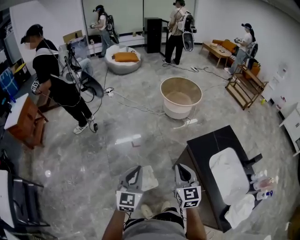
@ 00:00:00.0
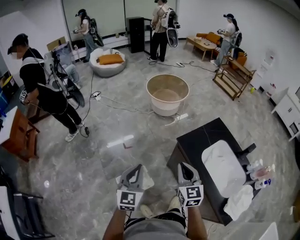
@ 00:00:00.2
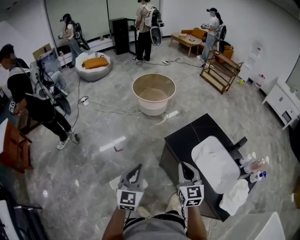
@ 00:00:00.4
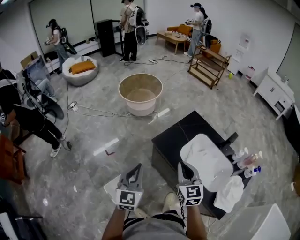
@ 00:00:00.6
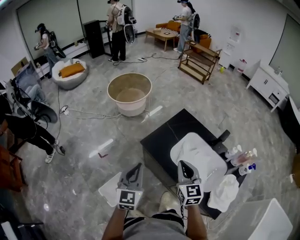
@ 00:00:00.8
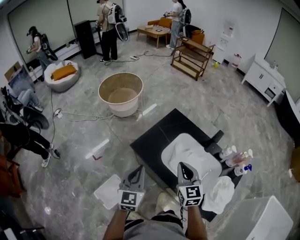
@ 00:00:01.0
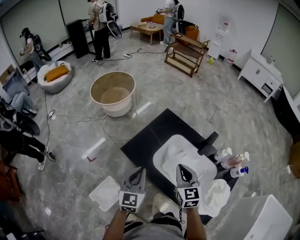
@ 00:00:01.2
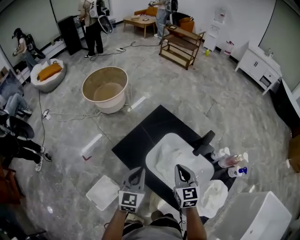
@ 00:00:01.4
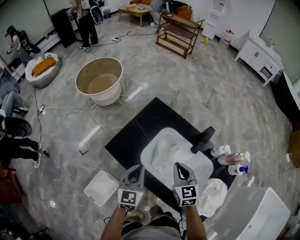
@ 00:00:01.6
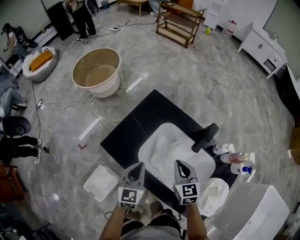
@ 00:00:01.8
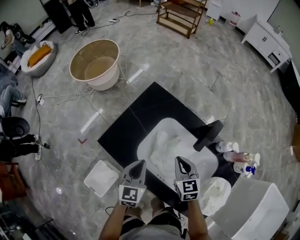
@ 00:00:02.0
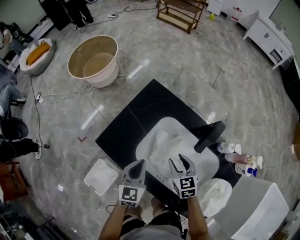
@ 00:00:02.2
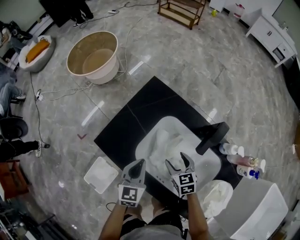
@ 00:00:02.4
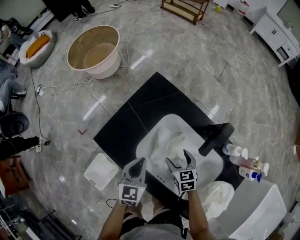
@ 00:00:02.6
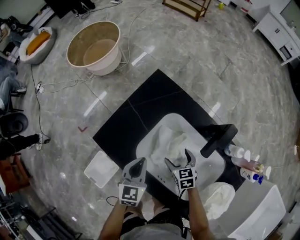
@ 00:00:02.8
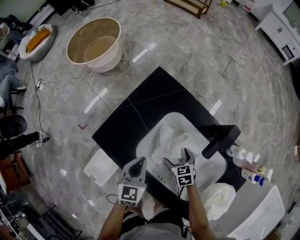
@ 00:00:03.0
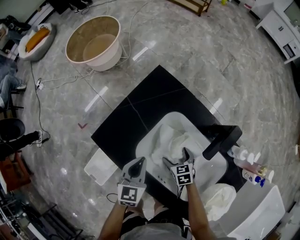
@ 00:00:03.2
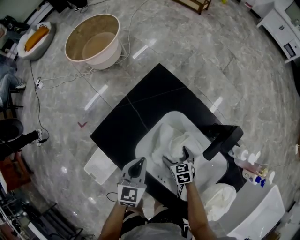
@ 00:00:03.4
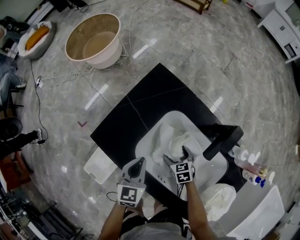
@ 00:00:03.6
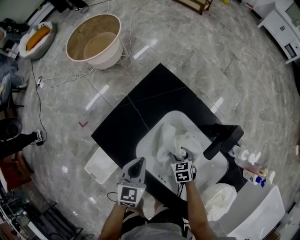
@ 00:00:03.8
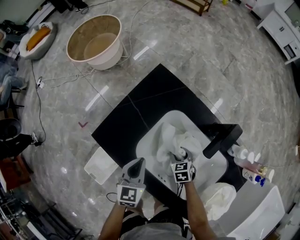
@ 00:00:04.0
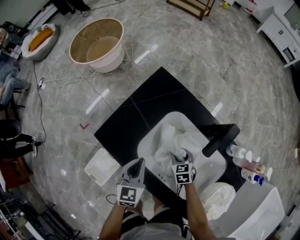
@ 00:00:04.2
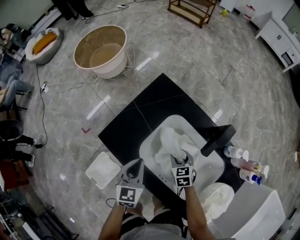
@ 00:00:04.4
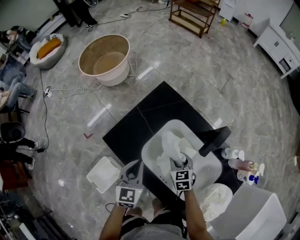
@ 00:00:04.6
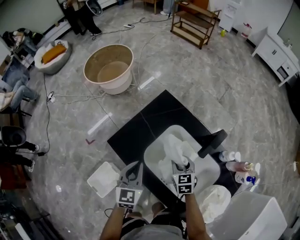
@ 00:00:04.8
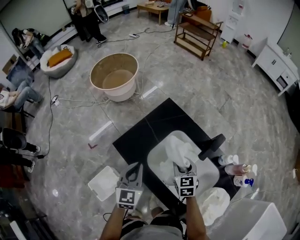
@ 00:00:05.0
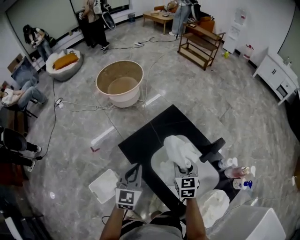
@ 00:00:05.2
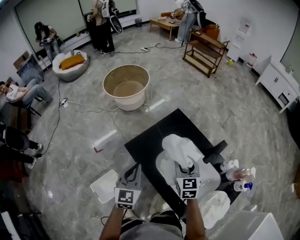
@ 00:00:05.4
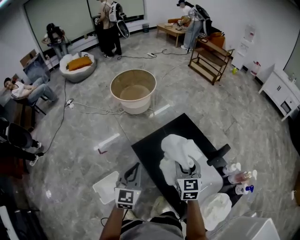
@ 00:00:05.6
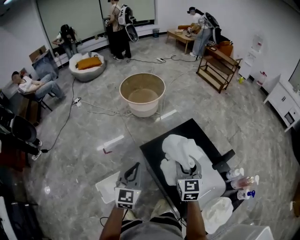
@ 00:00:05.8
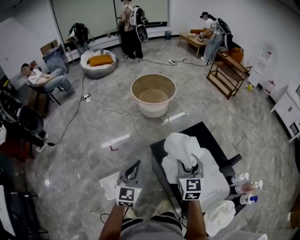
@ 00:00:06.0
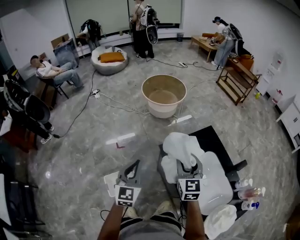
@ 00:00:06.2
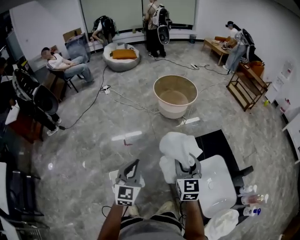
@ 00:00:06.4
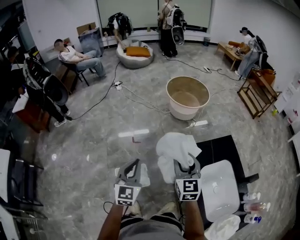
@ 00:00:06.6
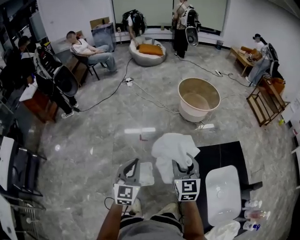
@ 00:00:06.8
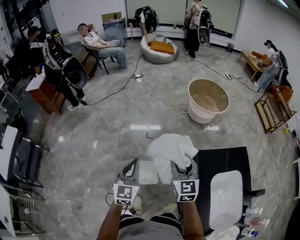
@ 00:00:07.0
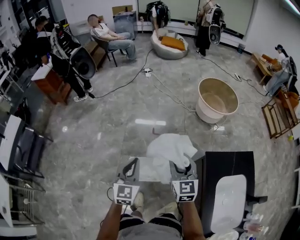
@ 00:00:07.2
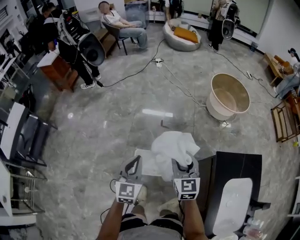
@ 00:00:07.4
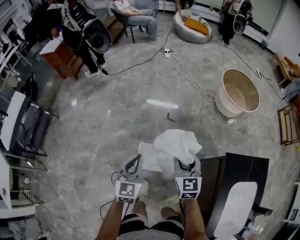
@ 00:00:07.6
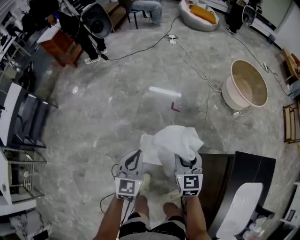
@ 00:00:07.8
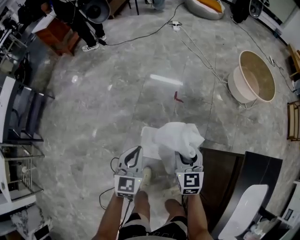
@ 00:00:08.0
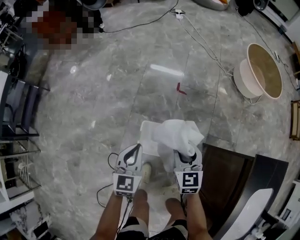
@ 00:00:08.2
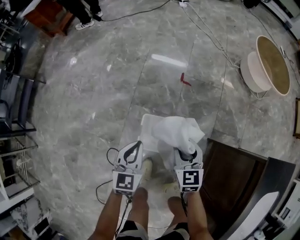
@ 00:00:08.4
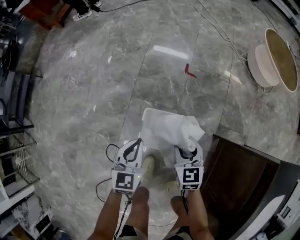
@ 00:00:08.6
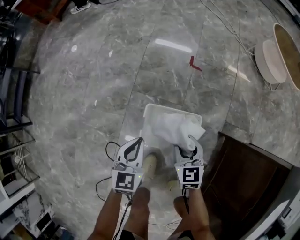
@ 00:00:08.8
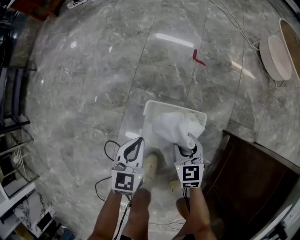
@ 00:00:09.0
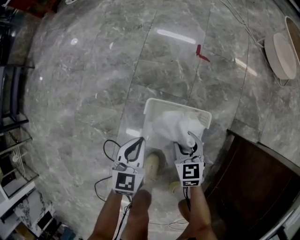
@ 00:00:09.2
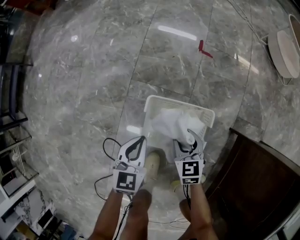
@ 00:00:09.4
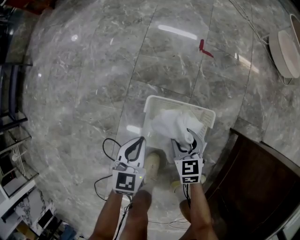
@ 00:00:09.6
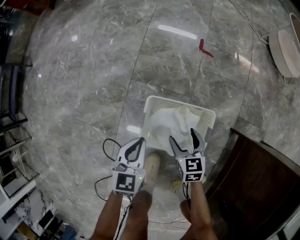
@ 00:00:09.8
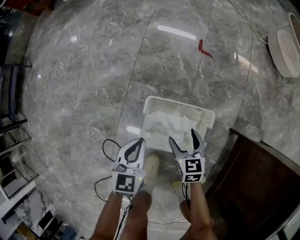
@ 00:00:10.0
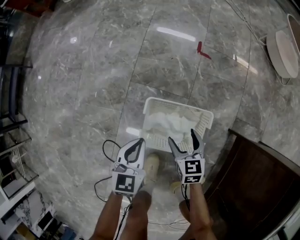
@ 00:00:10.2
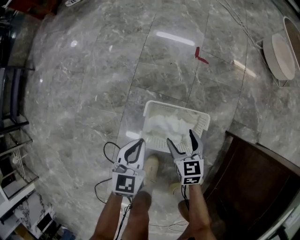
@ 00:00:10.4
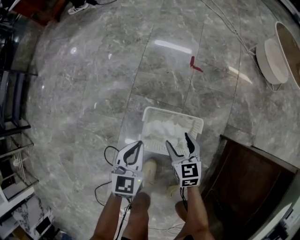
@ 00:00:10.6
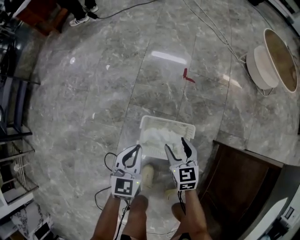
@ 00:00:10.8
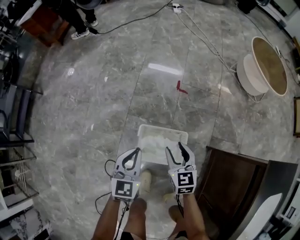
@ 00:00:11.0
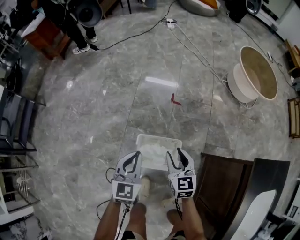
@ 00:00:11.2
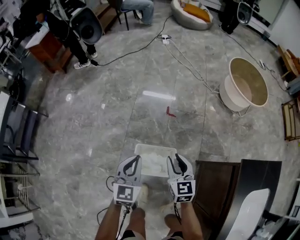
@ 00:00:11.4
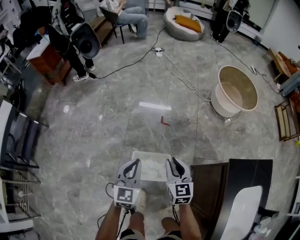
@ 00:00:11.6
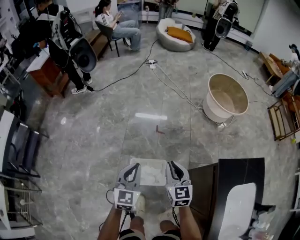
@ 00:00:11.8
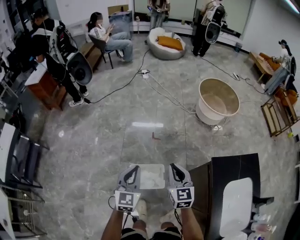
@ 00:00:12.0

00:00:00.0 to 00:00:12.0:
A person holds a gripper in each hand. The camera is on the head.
00:00:00.0 to 00:00:01.6: The two grippers travel together, some 50 cm. The left gripper swivels approximately 30 degrees; the right gripper turns by approximately 30 degrees.
00:00:01.6 to 00:00:03.0: The right gripper goes roughly 30 cm downward, swivels roughly 30 degrees, and opens up, while the left gripper heads downward, covering some 15 cm.
00:00:03.0 to 00:00:04.4: The left gripper shifts by roughly 5 cm; the right gripper travels upward by some 5 cm, and closes up.
00:00:04.4 to 00:00:06.0: The right gripper heads upward and to the left, covering approximately 40 cm, and tips its fingers upward by about 40 degrees. Meanwhile the left gripper is displaced to the left, upward and backward by approximately 35 cm, and rotates roughly 30 degrees.
00:00:06.0 to 00:00:07.6: The two grippers travel together, about 40 cm. The left gripper changes its angle by about 40 degrees; the right gripper rotates approximately 40 degrees.
00:00:07.6 to 00:00:09.0: Both grippers move downward, some 50 cm. The right gripper rotates about 20 degrees. Meanwhile the left gripper rotates about 20 degrees.
00:00:09.0 to 00:00:10.4: The right gripper heads downward, covering some 5 cm, and opens its fingers.
00:00:10.4 to 00:00:12.0: The two grippers go some 60 cm upward. The right gripper changes its angle by some 30 degrees, and closes; the left gripper rotates roughly 20 degrees.

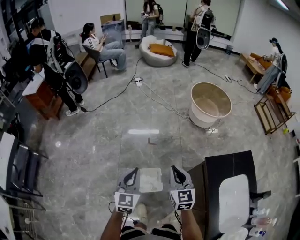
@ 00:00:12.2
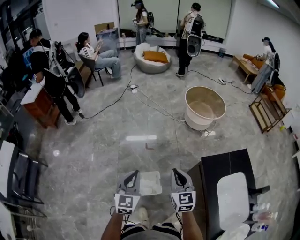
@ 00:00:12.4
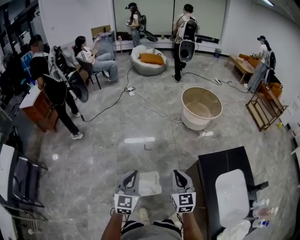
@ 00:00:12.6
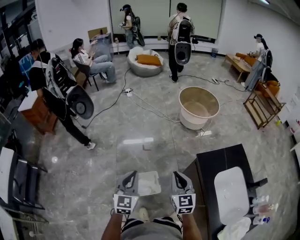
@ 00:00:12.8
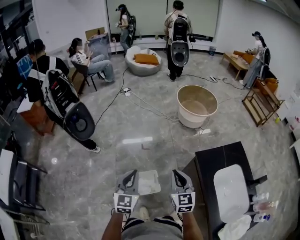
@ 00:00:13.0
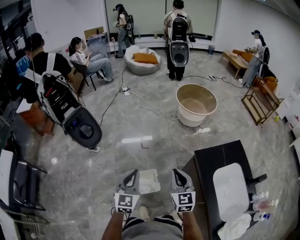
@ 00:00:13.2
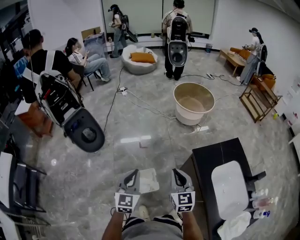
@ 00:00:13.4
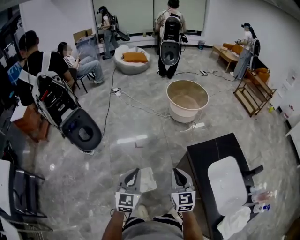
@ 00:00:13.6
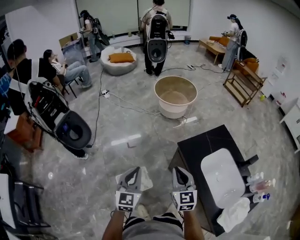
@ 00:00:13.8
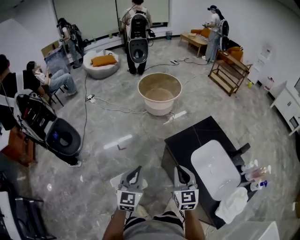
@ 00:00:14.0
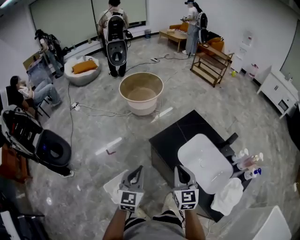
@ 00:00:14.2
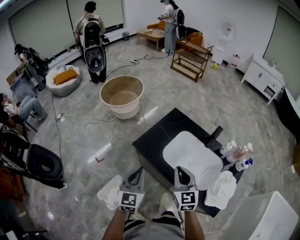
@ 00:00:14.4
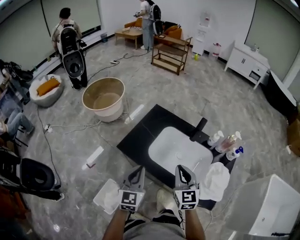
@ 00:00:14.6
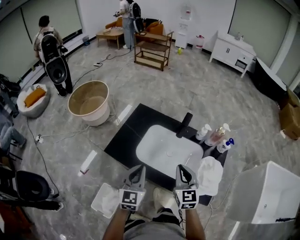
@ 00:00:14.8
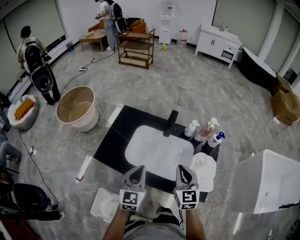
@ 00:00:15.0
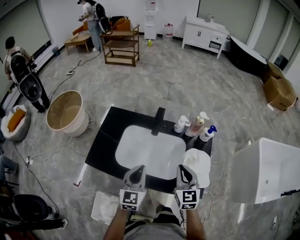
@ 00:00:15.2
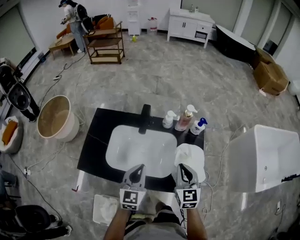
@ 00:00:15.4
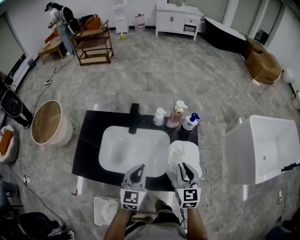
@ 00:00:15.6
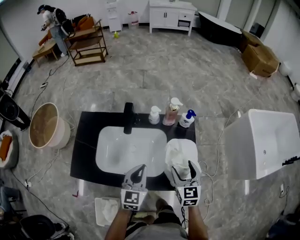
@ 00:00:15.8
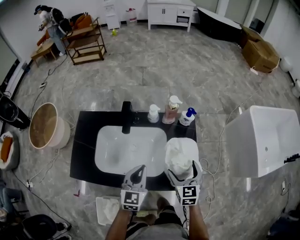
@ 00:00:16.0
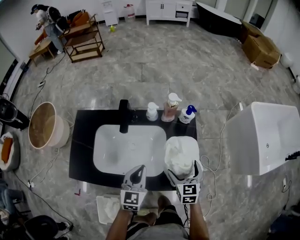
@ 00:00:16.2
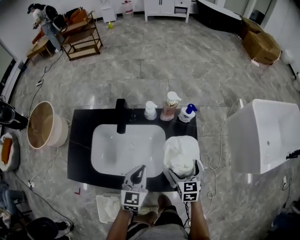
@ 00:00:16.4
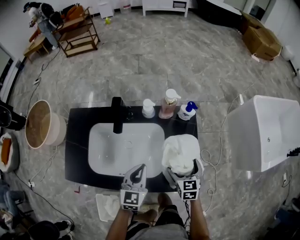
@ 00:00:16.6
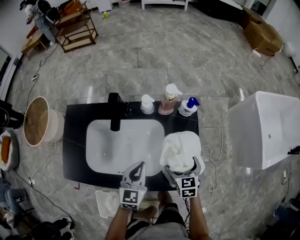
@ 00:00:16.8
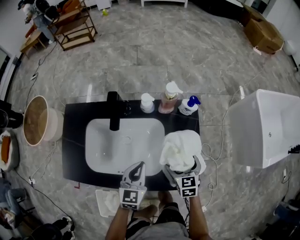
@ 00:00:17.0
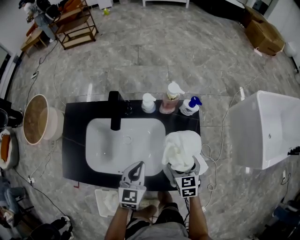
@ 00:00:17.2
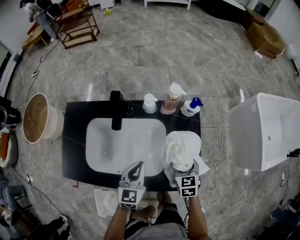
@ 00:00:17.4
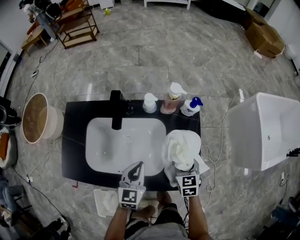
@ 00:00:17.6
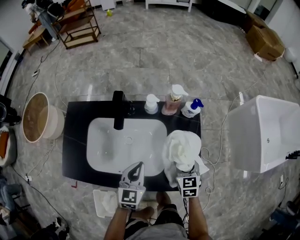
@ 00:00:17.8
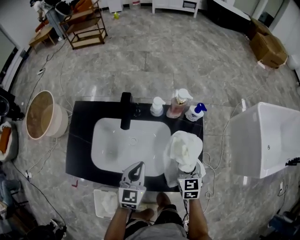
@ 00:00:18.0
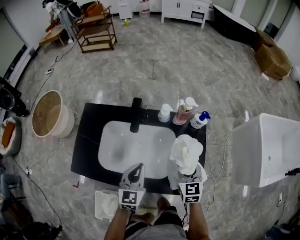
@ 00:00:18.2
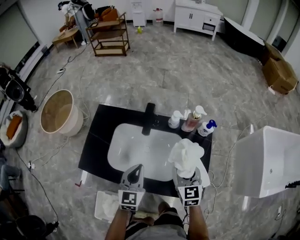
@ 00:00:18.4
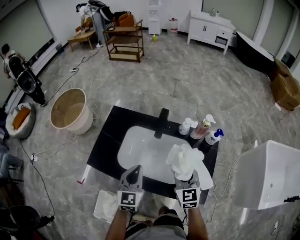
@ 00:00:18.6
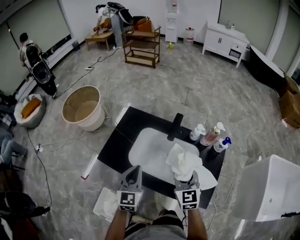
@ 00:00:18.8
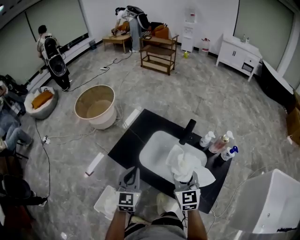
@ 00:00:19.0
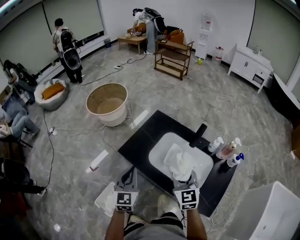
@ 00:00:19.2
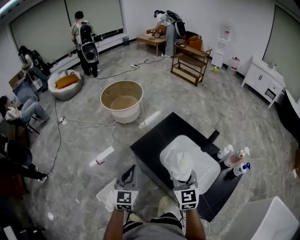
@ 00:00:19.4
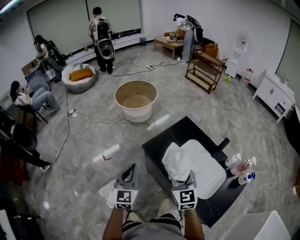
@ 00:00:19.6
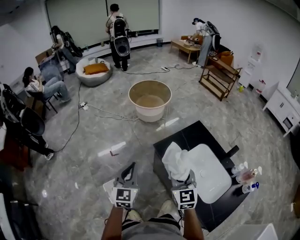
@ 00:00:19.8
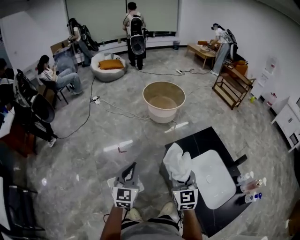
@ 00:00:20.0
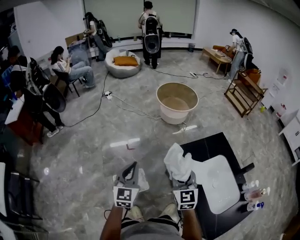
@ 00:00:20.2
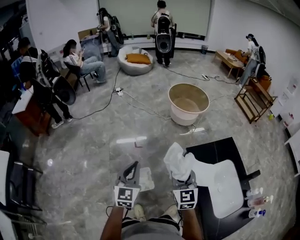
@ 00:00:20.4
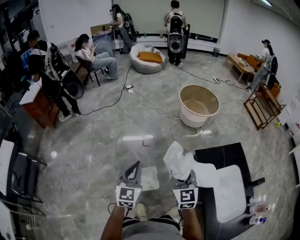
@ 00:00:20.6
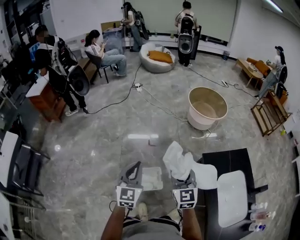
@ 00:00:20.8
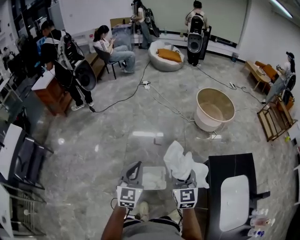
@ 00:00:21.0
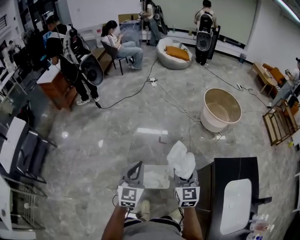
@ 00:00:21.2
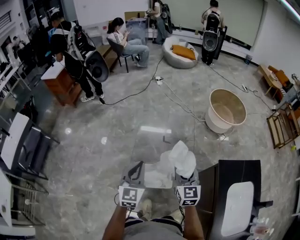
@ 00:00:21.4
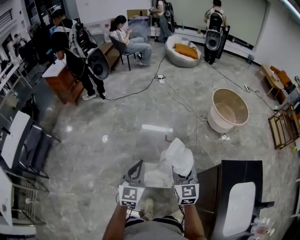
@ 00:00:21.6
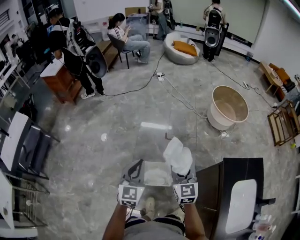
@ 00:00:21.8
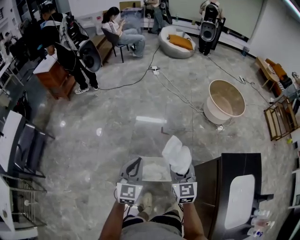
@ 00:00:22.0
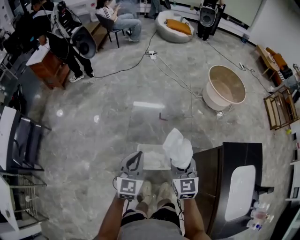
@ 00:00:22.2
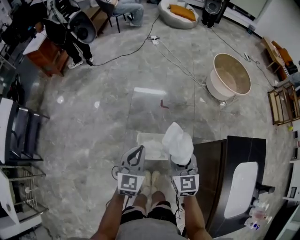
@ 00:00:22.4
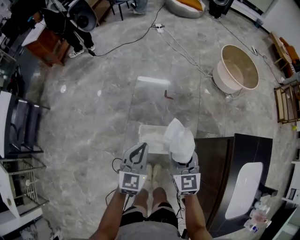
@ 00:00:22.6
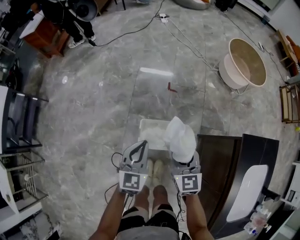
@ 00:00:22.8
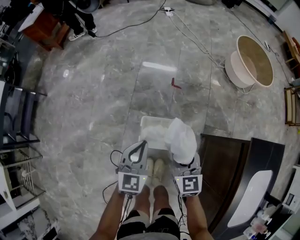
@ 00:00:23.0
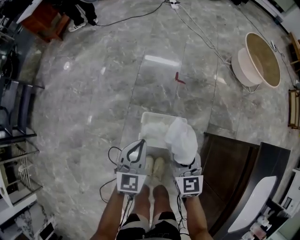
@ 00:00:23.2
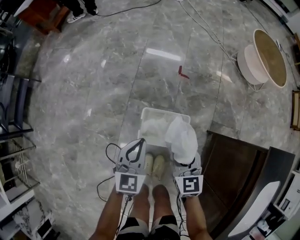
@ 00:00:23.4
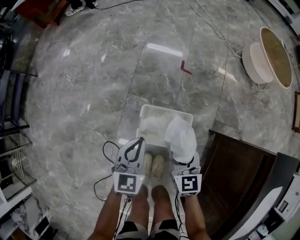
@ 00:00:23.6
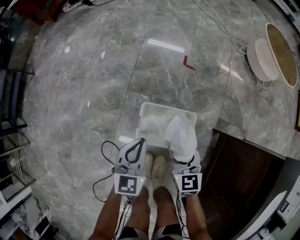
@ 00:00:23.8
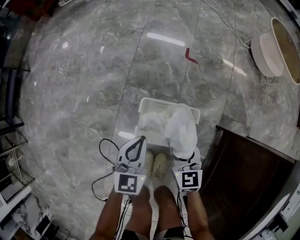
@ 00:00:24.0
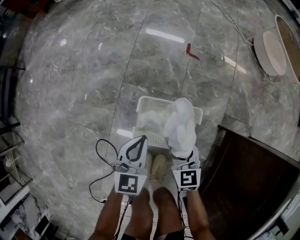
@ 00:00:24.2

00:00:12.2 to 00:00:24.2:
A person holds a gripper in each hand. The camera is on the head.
00:00:12.2 to 00:00:13.8: The right gripper moves to the right and backward, approximately 20 cm. Meanwhile the left gripper goes roughly 15 cm to the right.
00:00:13.8 to 00:00:15.2: The two grippers travel together, roughly 50 cm. The right gripper changes its angle by roughly 60 degrees; the left gripper turns by some 60 degrees.
00:00:15.2 to 00:00:16.6: The left gripper travels downward, to the right and forward by some 20 cm. The right gripper shifts roughly 25 cm downward and to the right, swivels roughly 30 degrees, and opens up.
00:00:16.6 to 00:00:18.2: The right gripper is displaced upward and to the left by about 10 cm, and closes its fingers, while the left gripper travels to the left by some 5 cm.
00:00:18.2 to 00:00:19.8: Both grippers are carried about 50 cm. The right gripper changes its angle by about 60 degrees. The left gripper swivels roughly 60 degrees.
00:00:19.8 to 00:00:21.2: The right gripper moves roughly 35 cm, and changes its angle by roughly 30 degrees. Meanwhile the left gripper moves approximately 30 cm, and turns by roughly 30 degrees.
00:00:21.2 to 00:00:22.6: The right gripper goes some 15 cm downward and to the left. Meanwhile the left gripper goes some 15 cm downward.
00:00:22.6 to 00:00:24.2: Both grippers travel together downward, roughly 50 cm. The right gripper rotates some 20 degrees.
